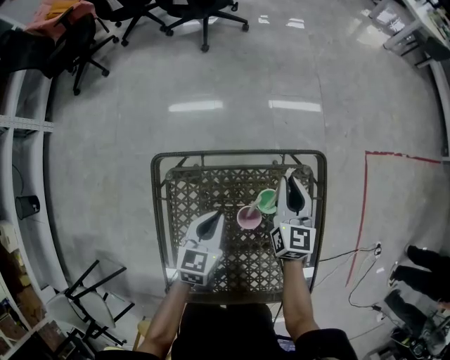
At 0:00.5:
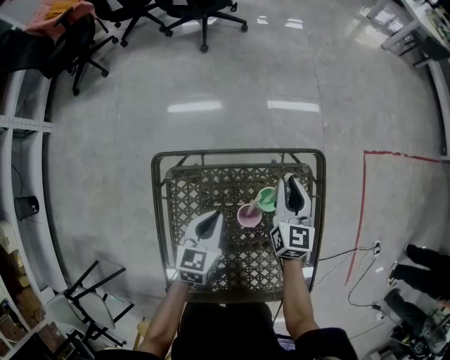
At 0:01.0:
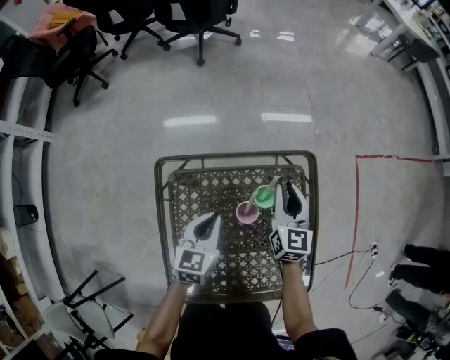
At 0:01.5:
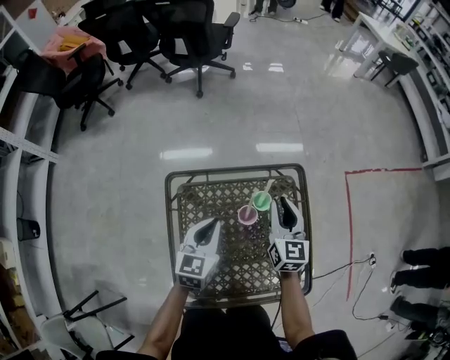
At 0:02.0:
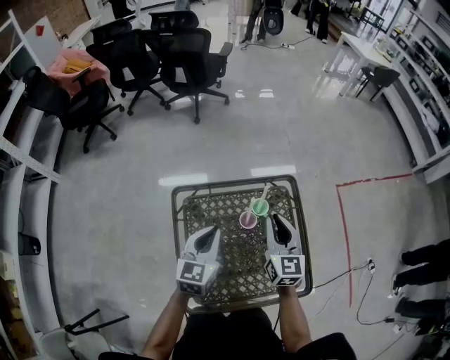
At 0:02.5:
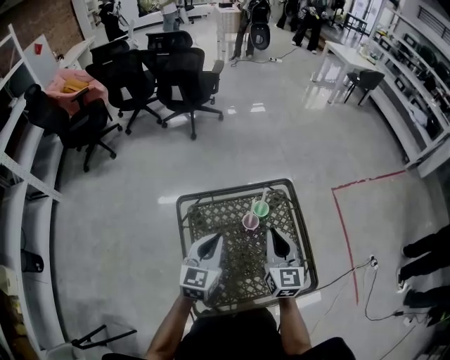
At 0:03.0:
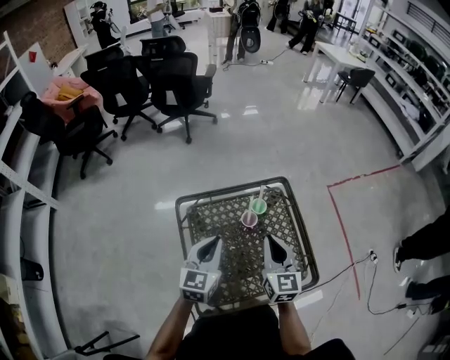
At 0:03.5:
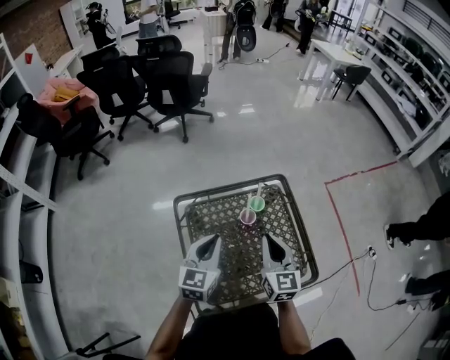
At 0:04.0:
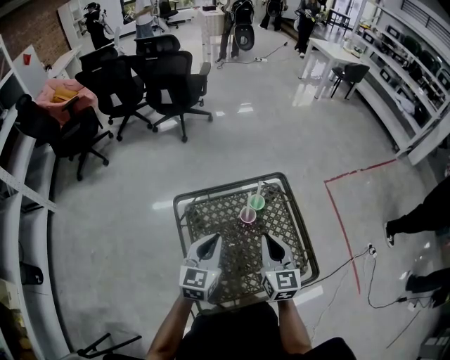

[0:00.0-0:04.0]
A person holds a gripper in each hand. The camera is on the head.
0:00.0 to 0:02.0: The two grippers go about 25 cm upward and backward.
0:02.0 to 0:04.0: The left gripper travels backward by approximately 10 cm. Meanwhile the right gripper moves backward, about 15 cm.

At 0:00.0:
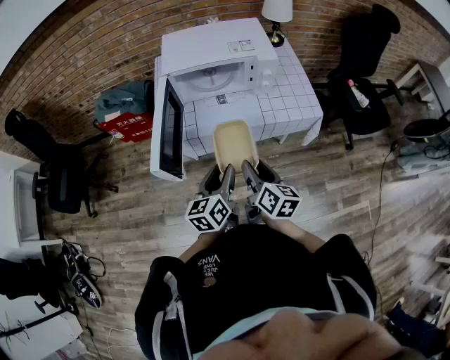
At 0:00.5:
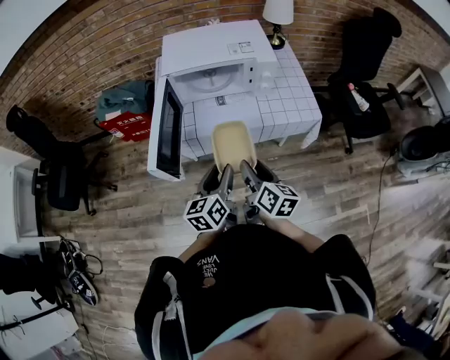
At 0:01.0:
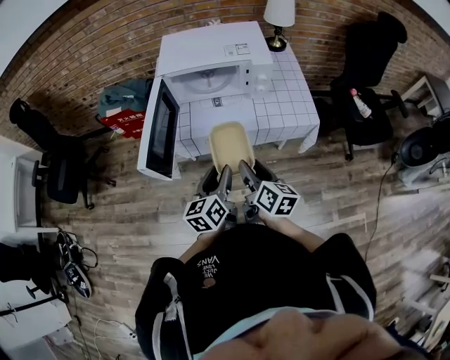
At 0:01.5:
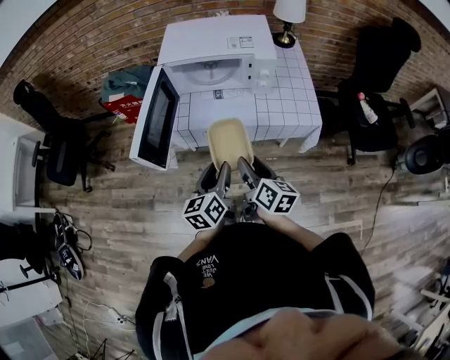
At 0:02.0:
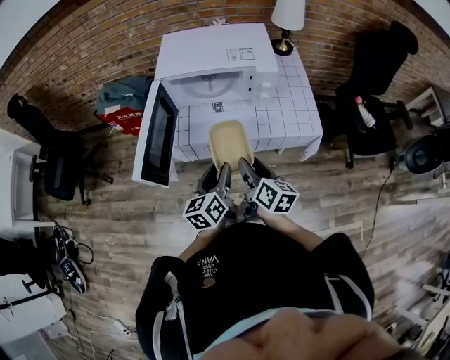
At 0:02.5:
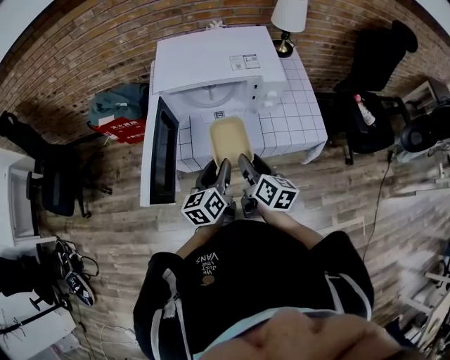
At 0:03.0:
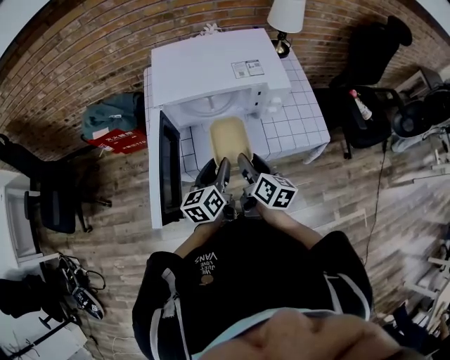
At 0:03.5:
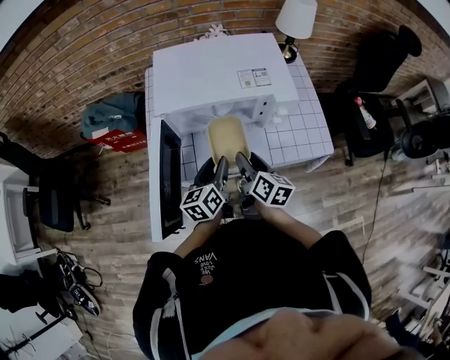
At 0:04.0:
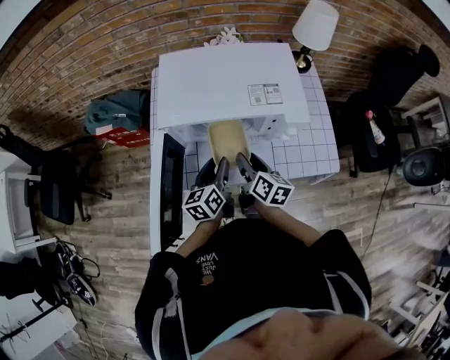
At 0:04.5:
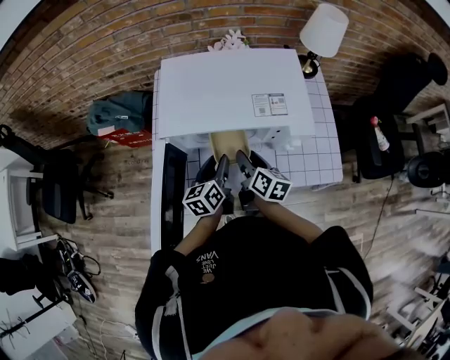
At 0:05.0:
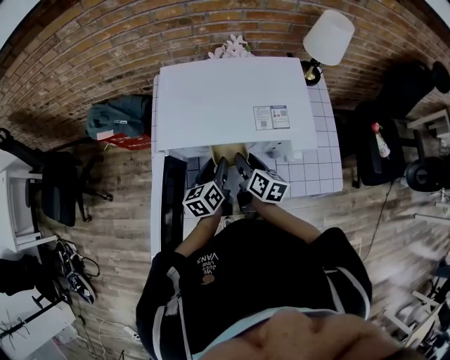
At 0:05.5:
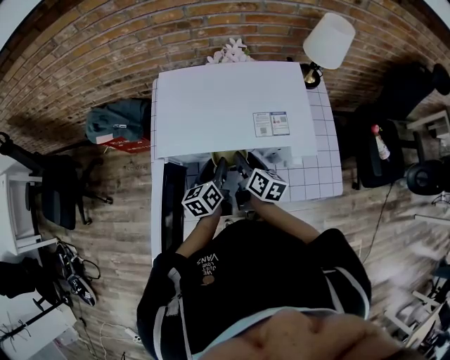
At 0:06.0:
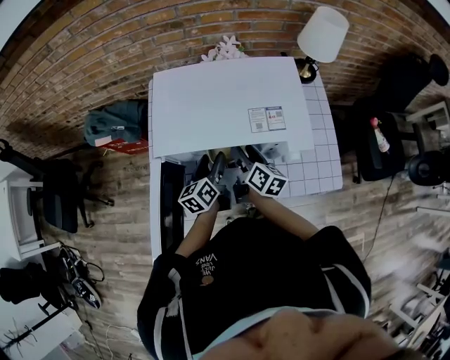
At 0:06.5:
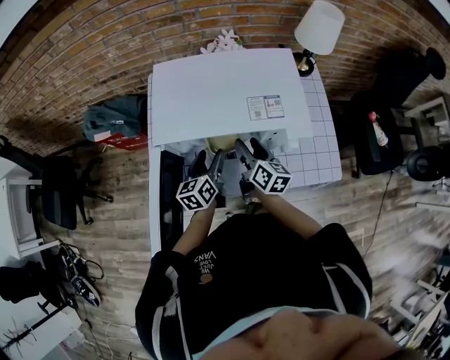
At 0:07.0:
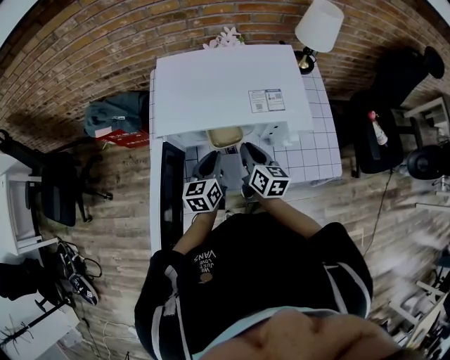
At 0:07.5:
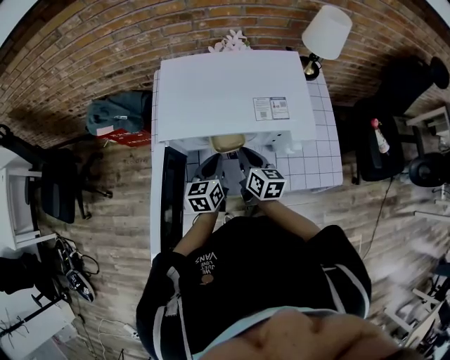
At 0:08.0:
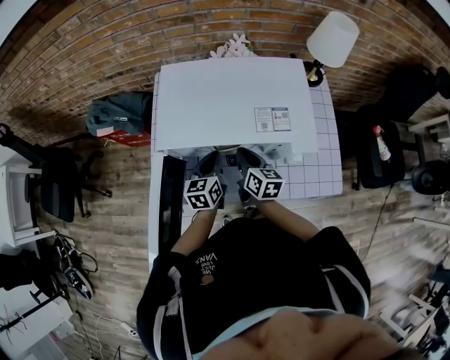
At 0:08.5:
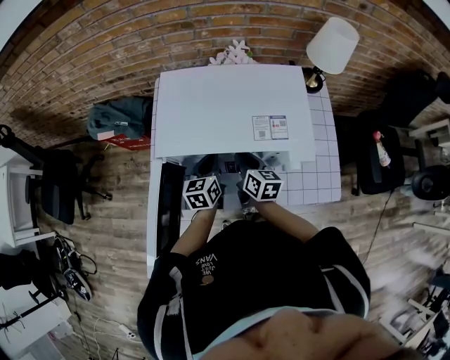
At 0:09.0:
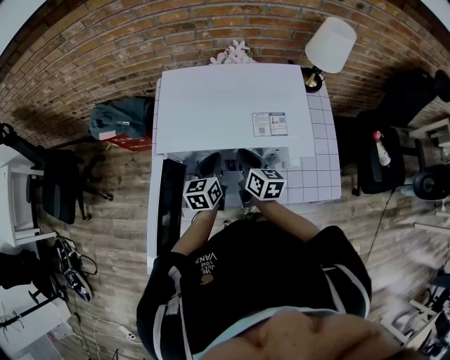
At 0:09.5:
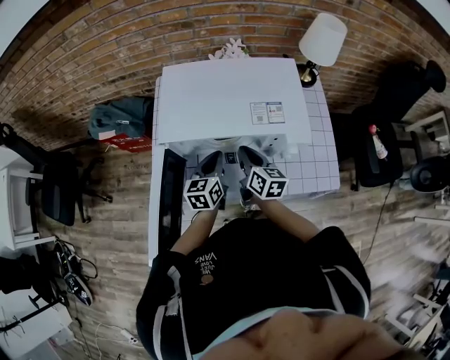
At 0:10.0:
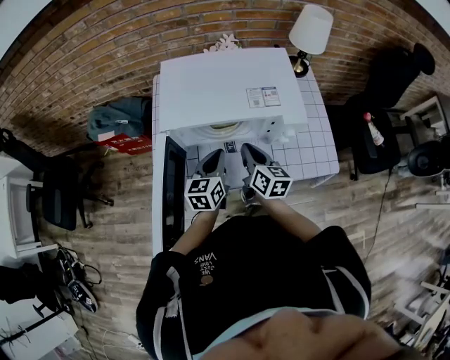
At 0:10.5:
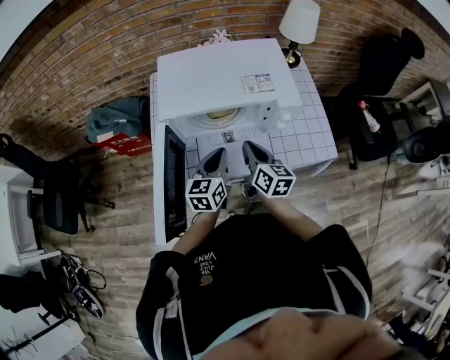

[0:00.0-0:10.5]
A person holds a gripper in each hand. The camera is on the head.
0:00.0 to 0:02.0: Both grippers travel together forward, roughly 5 cm.
0:02.0 to 0:04.0: The grippers both shift forward by approximately 25 cm.
0:04.0 to 0:06.5: The grippers both shift forward by roughly 10 cm. The left gripper opens its fingers.
0:06.5 to 0:08.5: The left gripper closes. The right gripper closes.
0:08.5 to 0:10.5: Both grippers move backward and upward, some 15 cm.

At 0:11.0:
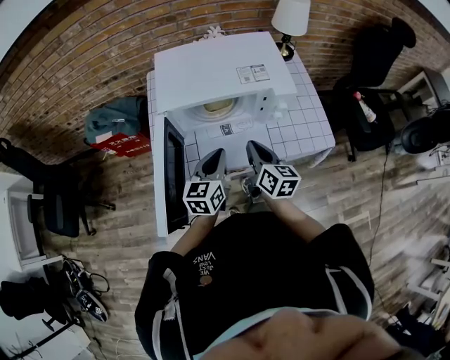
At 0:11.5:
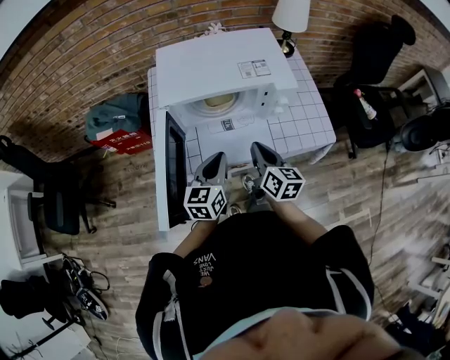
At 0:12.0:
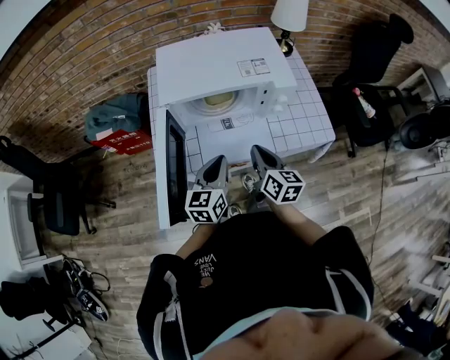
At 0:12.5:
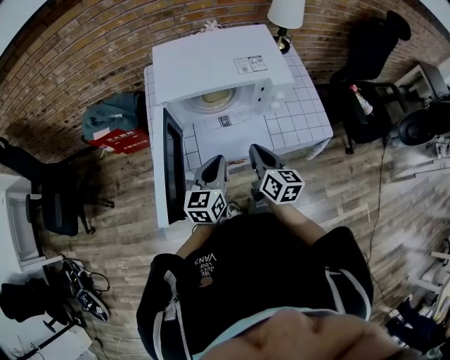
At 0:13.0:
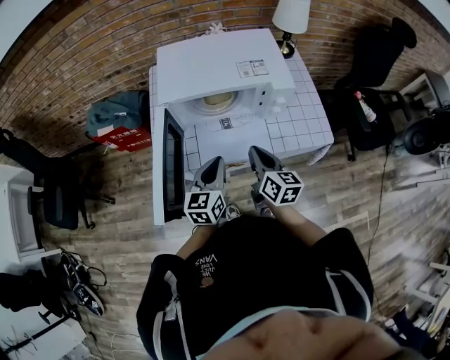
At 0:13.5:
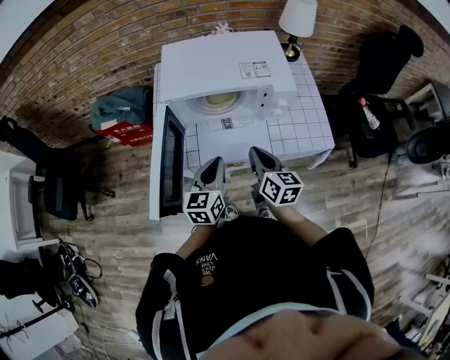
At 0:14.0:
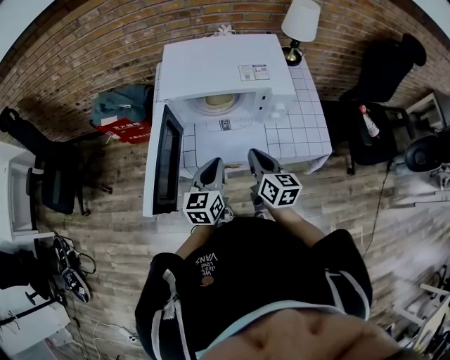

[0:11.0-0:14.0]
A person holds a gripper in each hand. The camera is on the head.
0:11.0 to 0:12.5: The left gripper is displaced backward by roughly 5 cm.
0:12.5 to 0:14.0: There are only small adjustments of the grippers.

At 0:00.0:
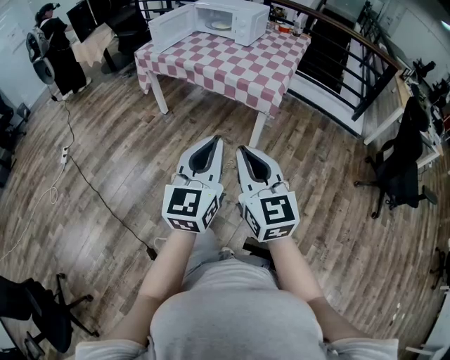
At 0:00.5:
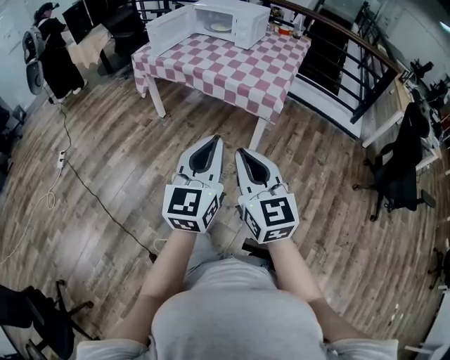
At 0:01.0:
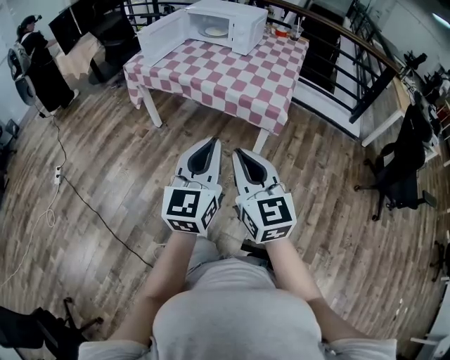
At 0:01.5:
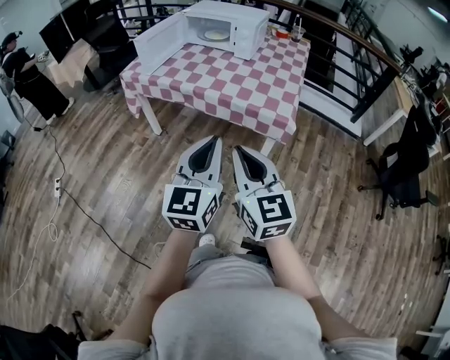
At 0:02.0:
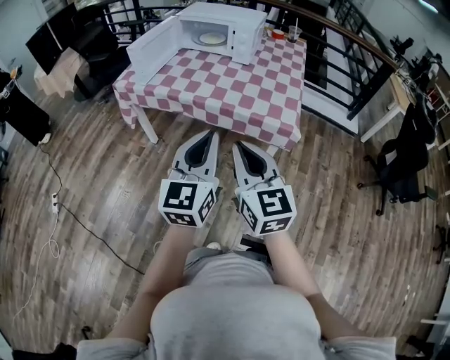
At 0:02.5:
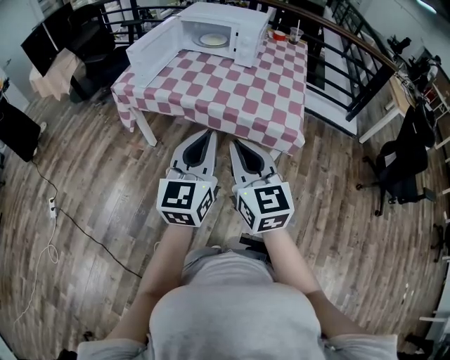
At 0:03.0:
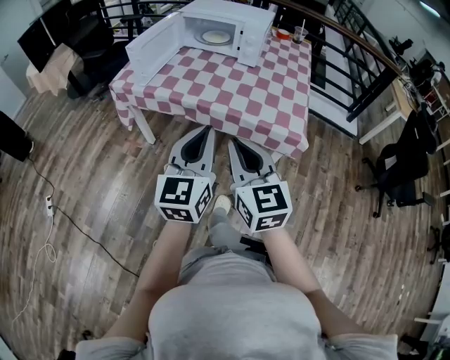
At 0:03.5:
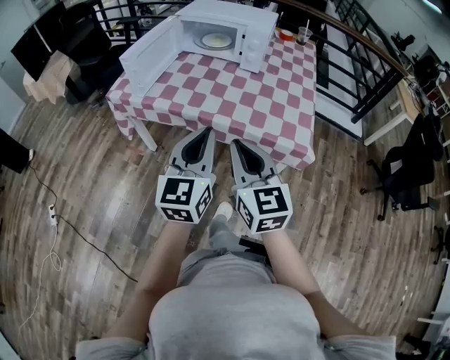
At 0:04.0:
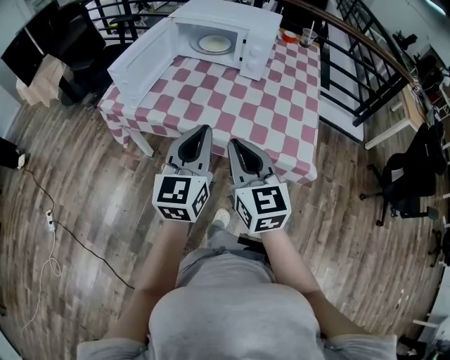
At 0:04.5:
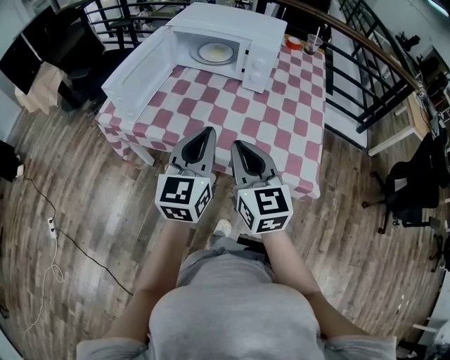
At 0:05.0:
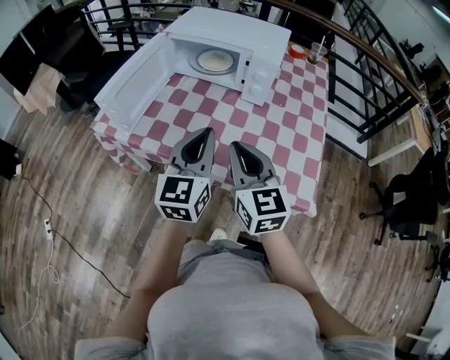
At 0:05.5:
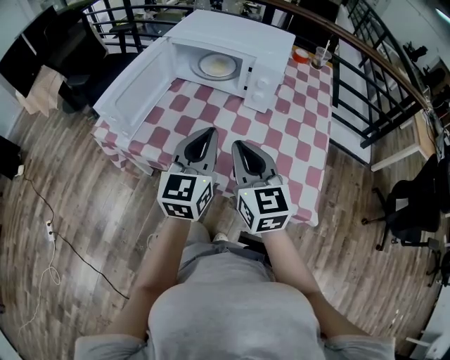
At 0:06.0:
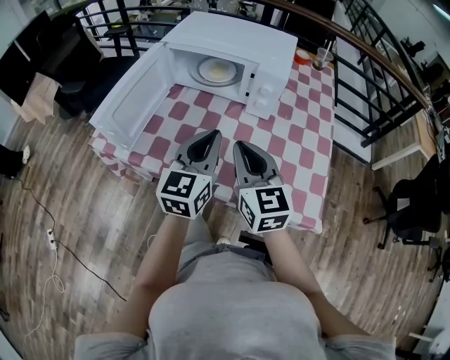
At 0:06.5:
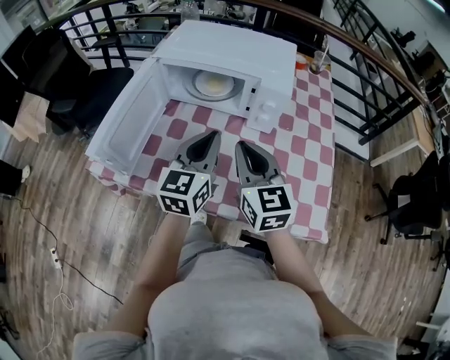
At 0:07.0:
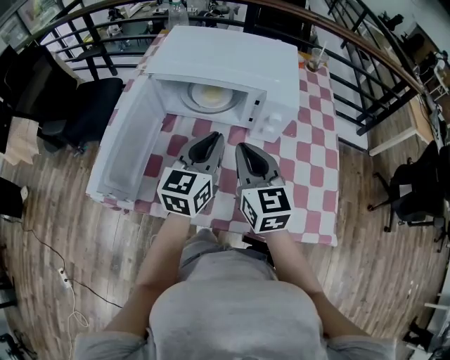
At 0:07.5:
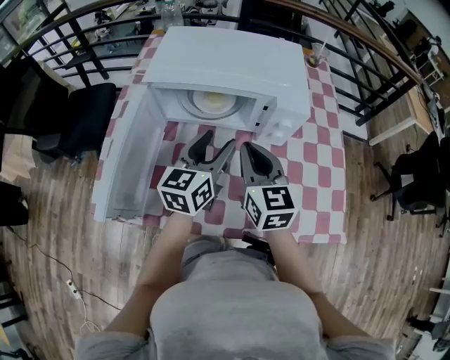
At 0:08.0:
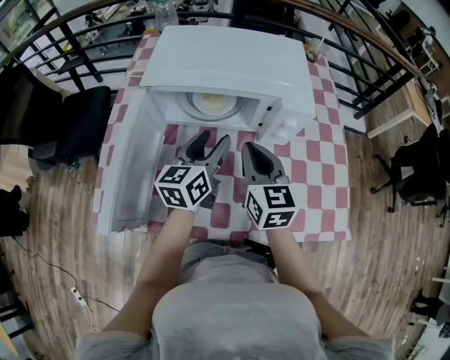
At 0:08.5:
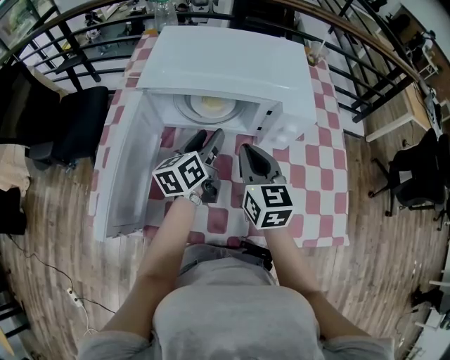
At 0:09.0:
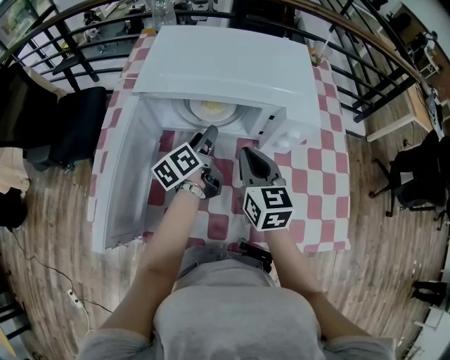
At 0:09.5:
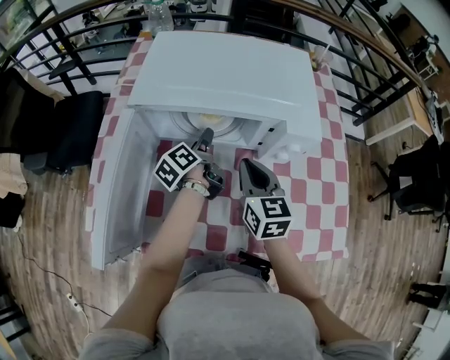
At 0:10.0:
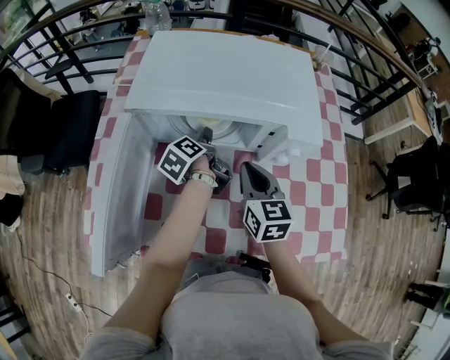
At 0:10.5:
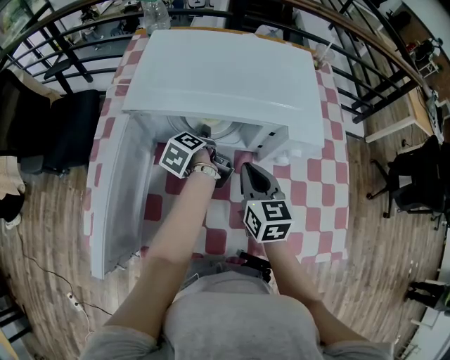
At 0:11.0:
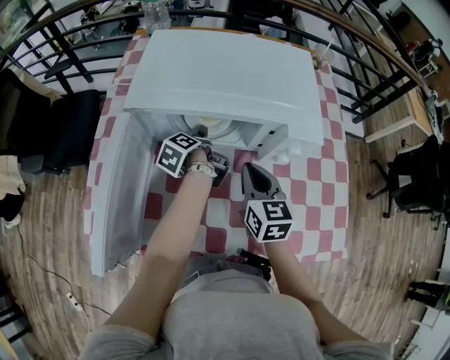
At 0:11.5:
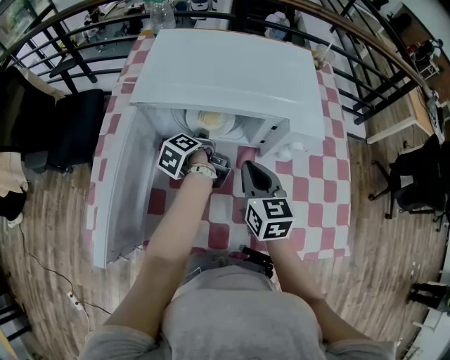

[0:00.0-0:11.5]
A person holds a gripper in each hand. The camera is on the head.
0:00.0 to 0:02.0: Both grippers move forward and to the left, roughly 30 cm.
0:02.0 to 0:04.0: The grippers both shift forward by roughly 25 cm.
0:04.0 to 0:06.0: Both grippers travel together forward, approximately 20 cm.
0:06.0 to 0:07.5: The two grippers go roughly 15 cm forward. The left gripper changes its angle by some 20 degrees, and opens up.
0:07.5 to 0:09.5: The left gripper shifts some 20 cm downward, forward and to the left, and twists about 50 degrees counterclockwise, seen from behind. The right gripper shifts approximately 10 cm downward and forward.
0:09.5 to 0:11.5: The left gripper closes its fingers.
